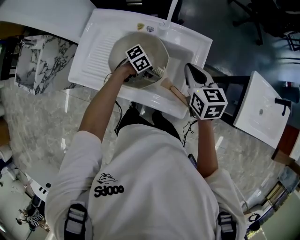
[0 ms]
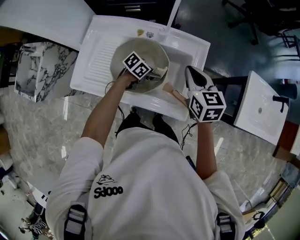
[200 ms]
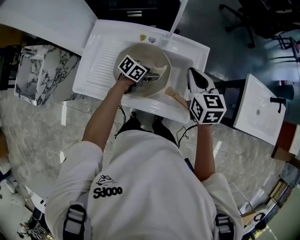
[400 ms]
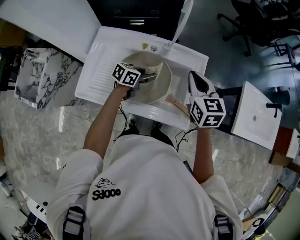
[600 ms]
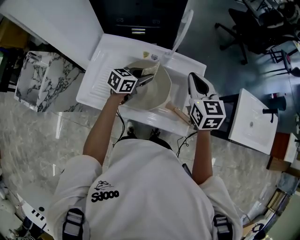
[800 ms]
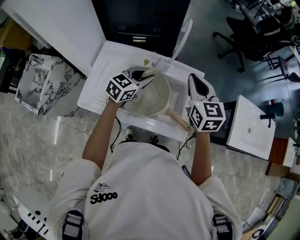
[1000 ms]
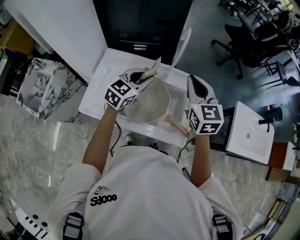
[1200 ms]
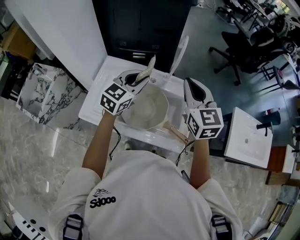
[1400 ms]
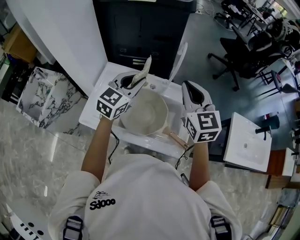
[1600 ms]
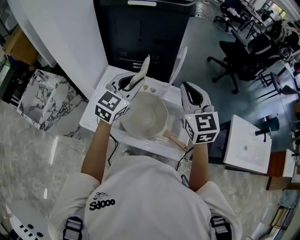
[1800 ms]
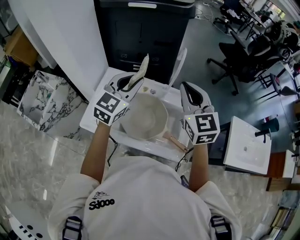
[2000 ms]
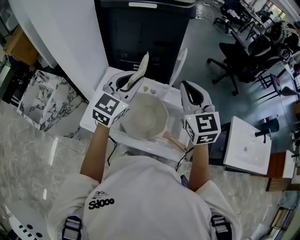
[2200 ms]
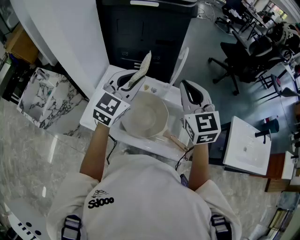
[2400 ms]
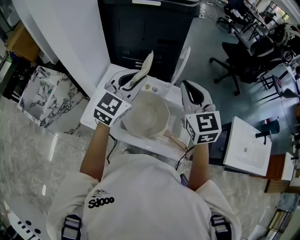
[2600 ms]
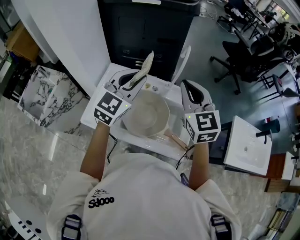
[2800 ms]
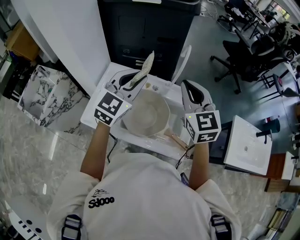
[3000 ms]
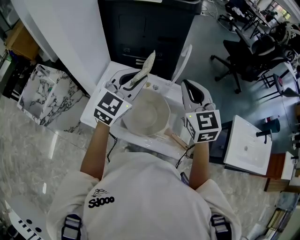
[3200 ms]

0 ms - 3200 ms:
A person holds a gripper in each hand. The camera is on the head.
0 ms - 1600 ms: The left gripper travels upward by approximately 35 cm, and turns by some 80 degrees, while the right gripper goes approximately 20 cm upward, and changes its angle by approximately 30 degrees.
1600 ms - 3200 ms: The left gripper shifts some 5 cm upward.

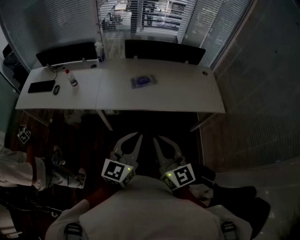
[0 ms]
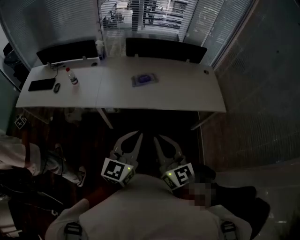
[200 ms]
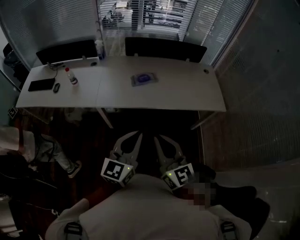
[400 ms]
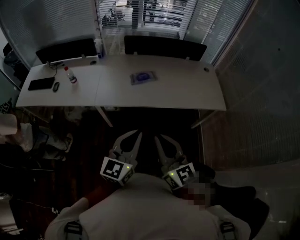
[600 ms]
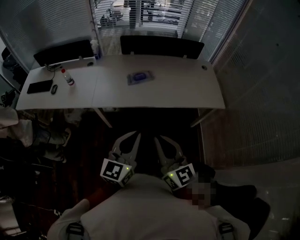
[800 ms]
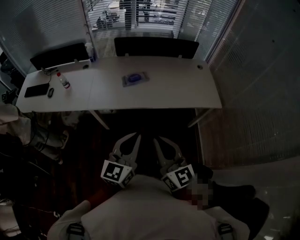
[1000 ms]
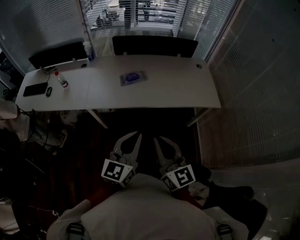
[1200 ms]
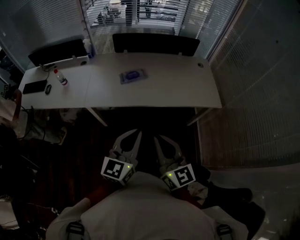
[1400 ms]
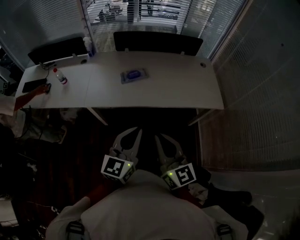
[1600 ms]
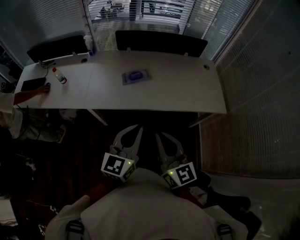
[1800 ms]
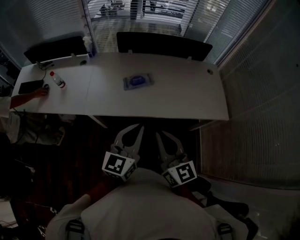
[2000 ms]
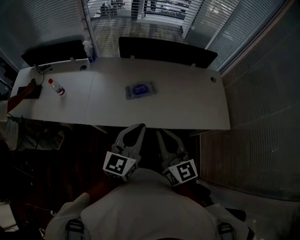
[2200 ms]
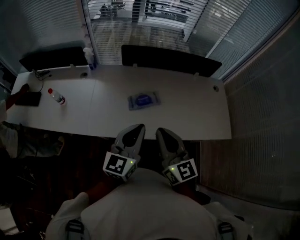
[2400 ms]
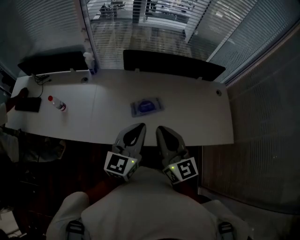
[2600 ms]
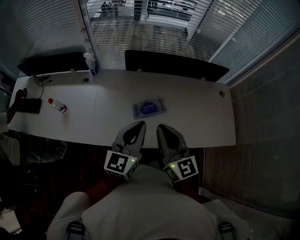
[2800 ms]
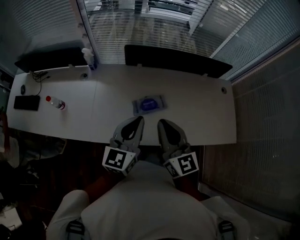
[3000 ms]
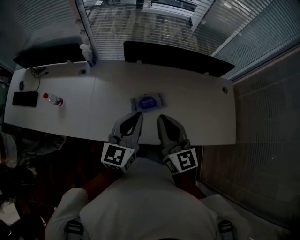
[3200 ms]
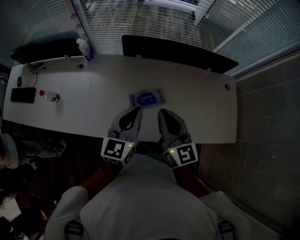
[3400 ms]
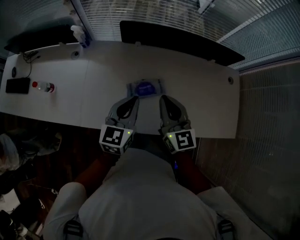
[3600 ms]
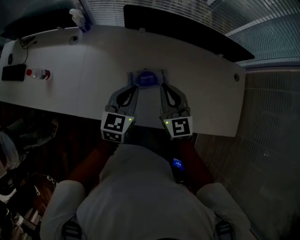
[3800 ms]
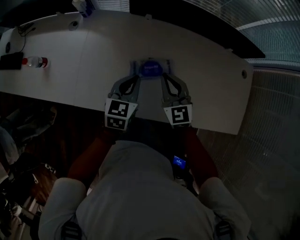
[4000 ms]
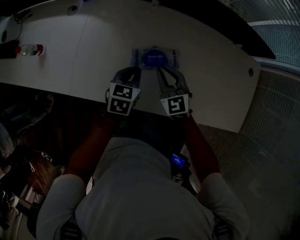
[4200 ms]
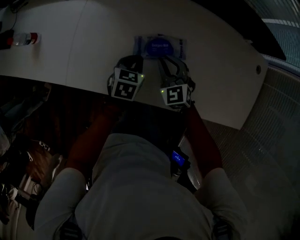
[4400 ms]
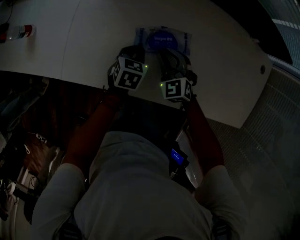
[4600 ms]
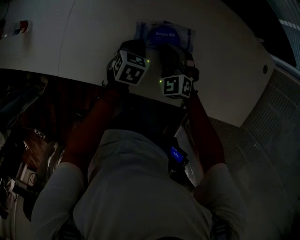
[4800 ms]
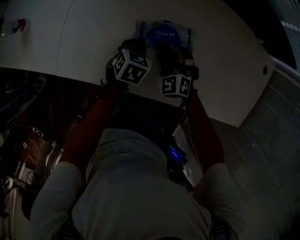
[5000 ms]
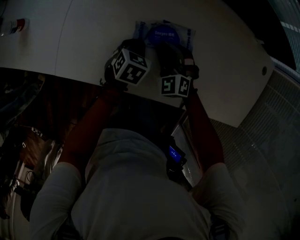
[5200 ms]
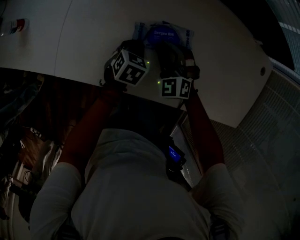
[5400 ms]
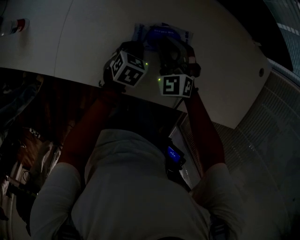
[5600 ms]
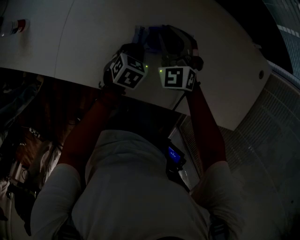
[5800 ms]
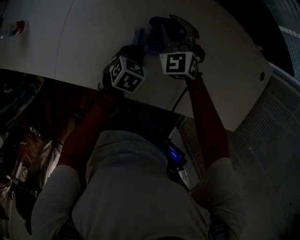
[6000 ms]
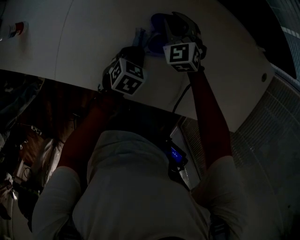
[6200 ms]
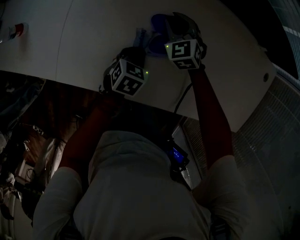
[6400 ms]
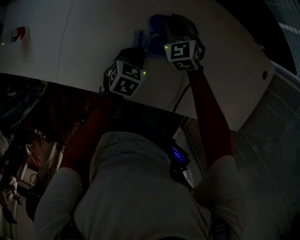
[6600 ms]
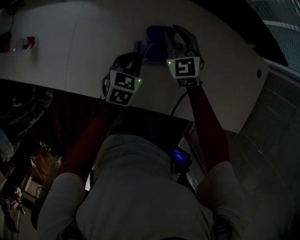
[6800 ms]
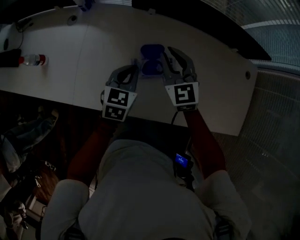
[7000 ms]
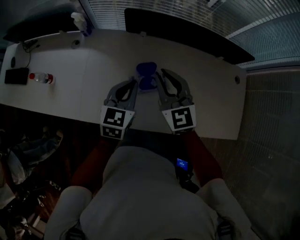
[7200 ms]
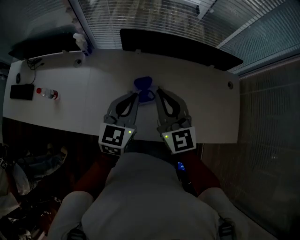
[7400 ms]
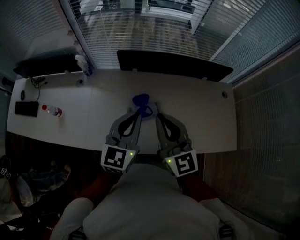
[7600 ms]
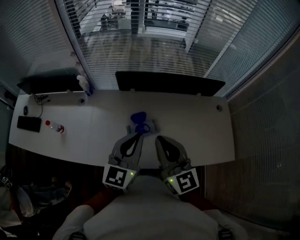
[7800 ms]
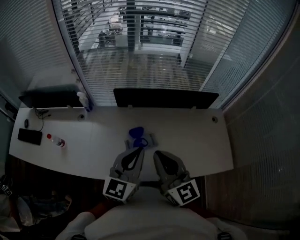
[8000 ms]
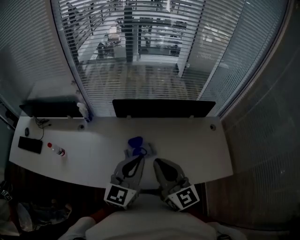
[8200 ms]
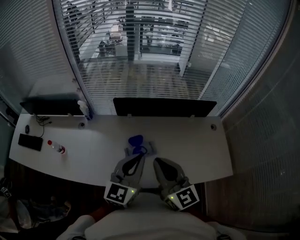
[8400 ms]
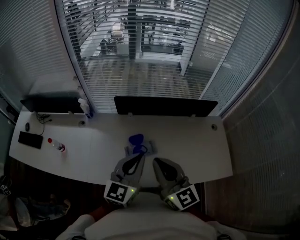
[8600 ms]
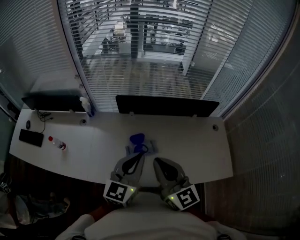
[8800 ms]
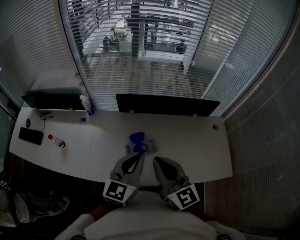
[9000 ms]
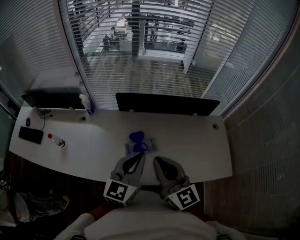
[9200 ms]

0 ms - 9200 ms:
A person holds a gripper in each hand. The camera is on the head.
0 ms - 1600 ms: The right gripper goes approximately 10 cm to the right; the left gripper travels to the right and forward by approximately 10 cm.
1600 ms - 3000 ms: Both grippers travel together forward, approximately 35 cm.
3000 ms - 4600 ms: The grippers both shift downward by approximately 40 cm. The right gripper angles its fingers downward, by some 40 degrees, while the left gripper tips its fingers downward by approximately 50 degrees.
4600 ms - 6200 ms: The right gripper travels forward by about 15 cm.
6200 ms - 7600 ms: The left gripper travels upward by approximately 40 cm, and tips its fingers upward by approximately 50 degrees. Meanwhile the right gripper heads upward and backward, covering some 50 cm, tips its fingers upward by about 40 degrees, and closes.
7600 ms - 9200 ms: The left gripper moves upward, roughly 5 cm. The right gripper travels backward by about 5 cm.

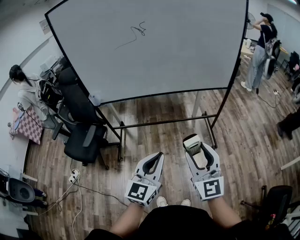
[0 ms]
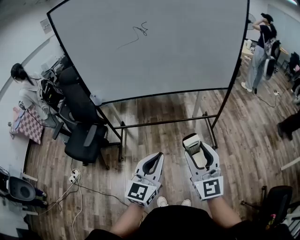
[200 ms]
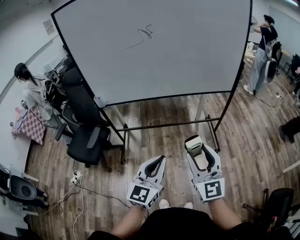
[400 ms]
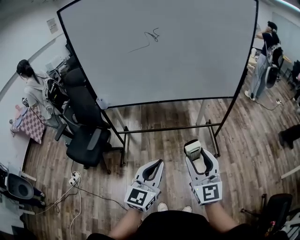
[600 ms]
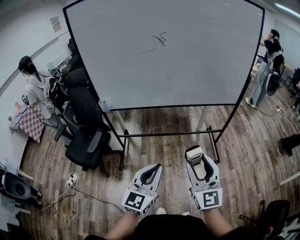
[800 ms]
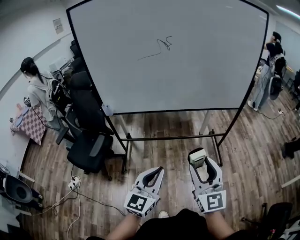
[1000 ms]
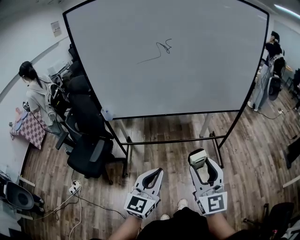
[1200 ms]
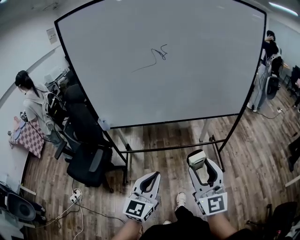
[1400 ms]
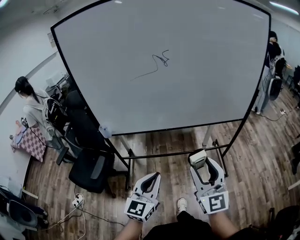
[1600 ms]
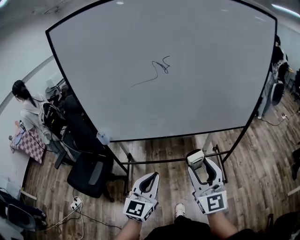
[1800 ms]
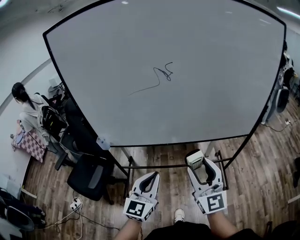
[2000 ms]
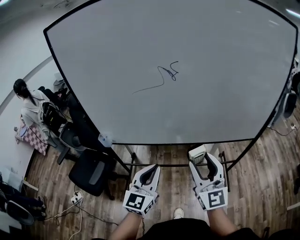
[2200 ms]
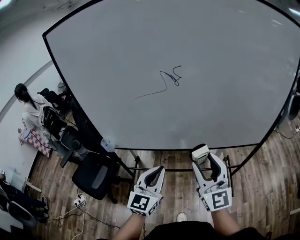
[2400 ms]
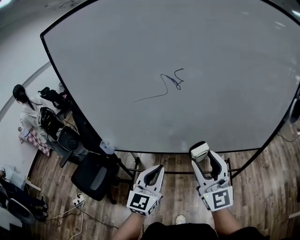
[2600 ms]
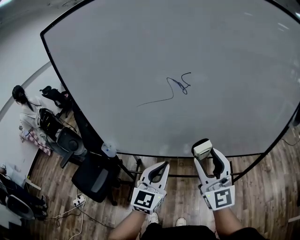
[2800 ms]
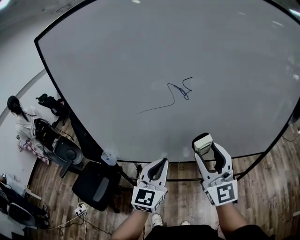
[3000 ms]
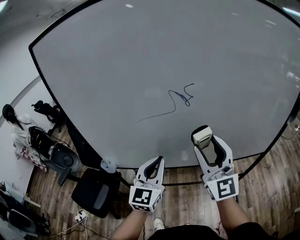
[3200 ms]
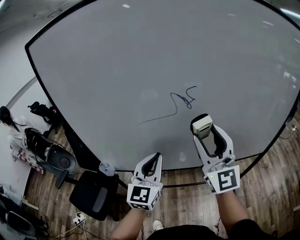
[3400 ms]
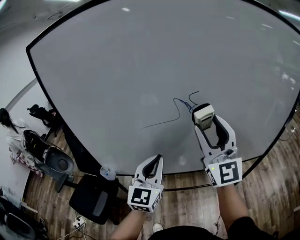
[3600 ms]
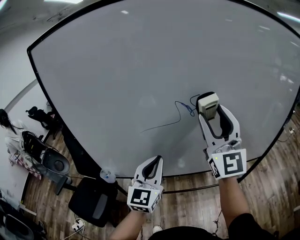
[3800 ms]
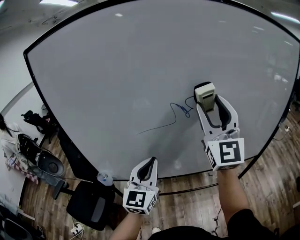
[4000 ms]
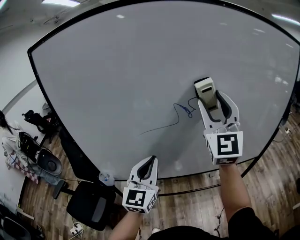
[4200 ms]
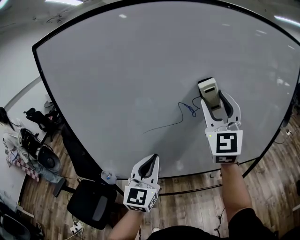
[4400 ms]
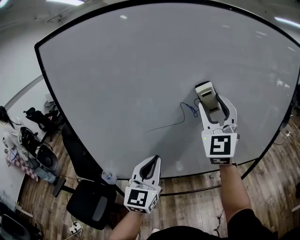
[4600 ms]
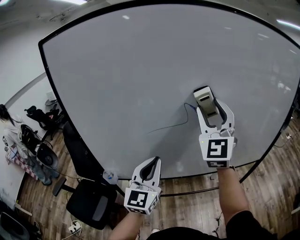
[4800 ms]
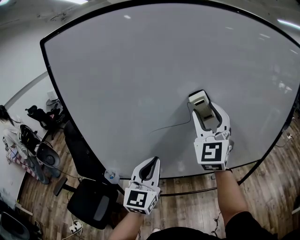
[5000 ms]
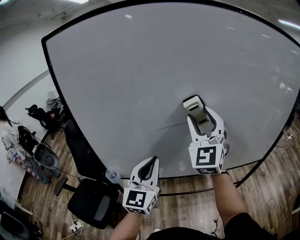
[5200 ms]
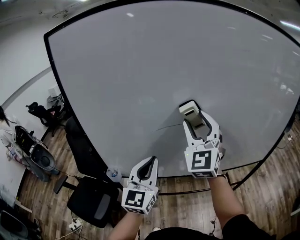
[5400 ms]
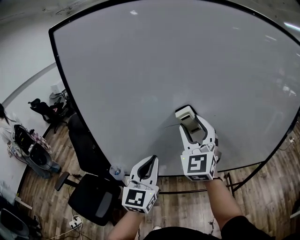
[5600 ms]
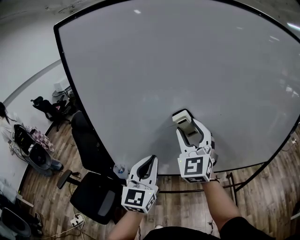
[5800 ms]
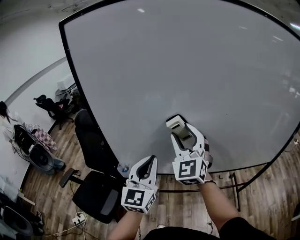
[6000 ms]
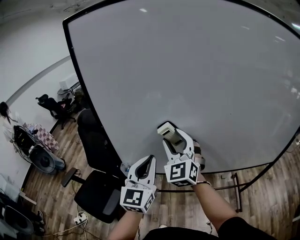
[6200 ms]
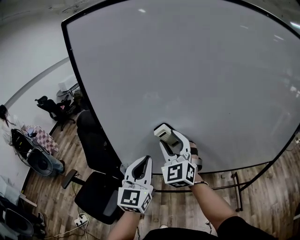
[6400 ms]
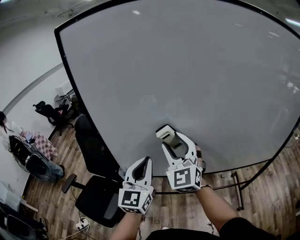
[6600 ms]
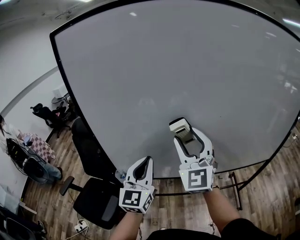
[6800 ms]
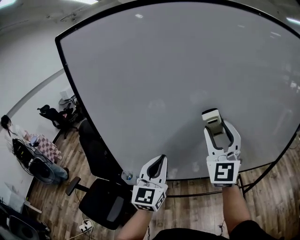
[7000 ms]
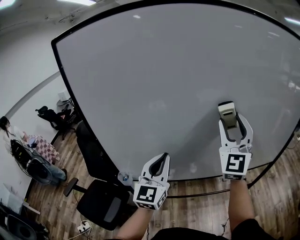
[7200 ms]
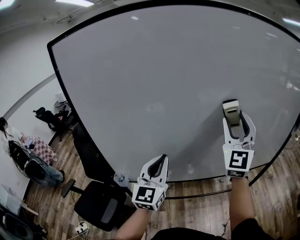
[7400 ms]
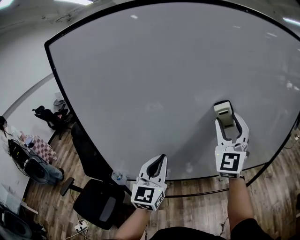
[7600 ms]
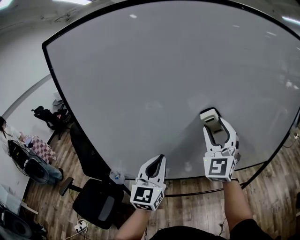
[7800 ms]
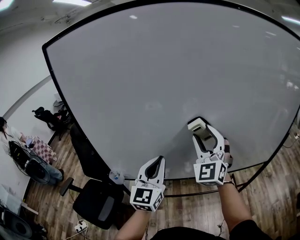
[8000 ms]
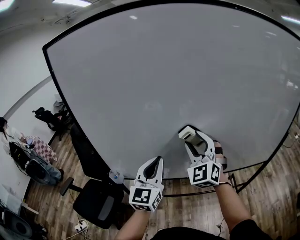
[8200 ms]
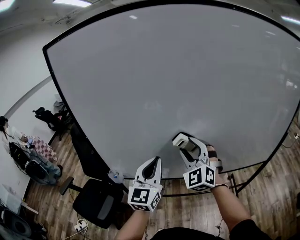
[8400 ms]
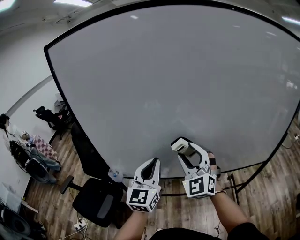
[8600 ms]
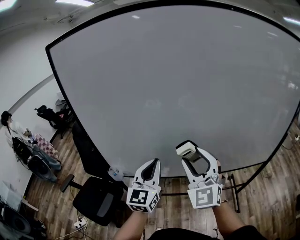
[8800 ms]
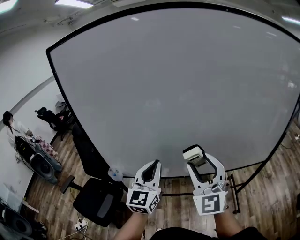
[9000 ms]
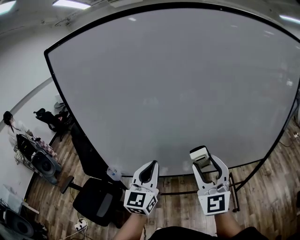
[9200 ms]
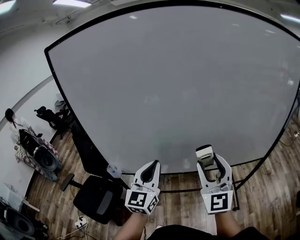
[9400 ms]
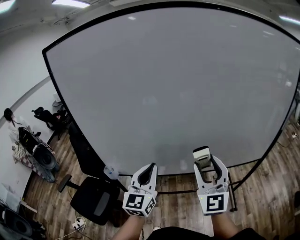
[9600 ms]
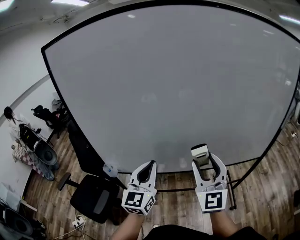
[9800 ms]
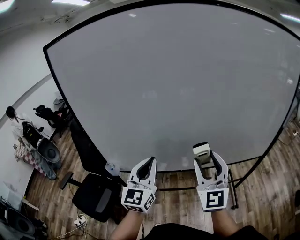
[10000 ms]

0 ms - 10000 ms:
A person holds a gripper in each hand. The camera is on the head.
0 ms - 1400 ms: The left gripper is displaced to the left and forward by some 15 cm, while the right gripper is displaced forward and to the left by roughly 15 cm.
1400 ms - 2800 ms: The grippers both shift forward by roughly 30 cm.
2800 ms - 4200 ms: The right gripper heads upward and forward, covering approximately 25 cm, and rotates some 30 degrees, while the left gripper moves forward, upward and to the left, roughly 15 cm.
4200 ms - 5800 ms: The right gripper moves to the left and downward, roughly 25 cm, while the left gripper moves to the left, approximately 10 cm.
5800 ms - 7200 ms: The right gripper moves to the right and upward, about 15 cm, while the left gripper ends up approximately 5 cm from where it was.
7200 ms - 8600 ms: The right gripper moves downward and to the left, approximately 15 cm, and turns by approximately 30 degrees.
8600 ms - 10000 ms: The right gripper is displaced to the right and backward by some 15 cm, and turns by about 30 degrees.

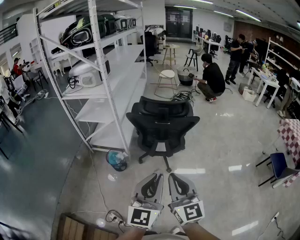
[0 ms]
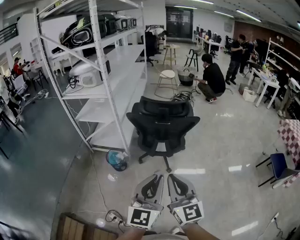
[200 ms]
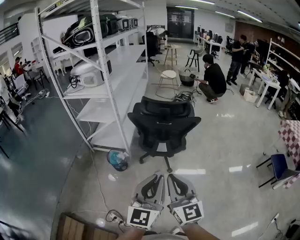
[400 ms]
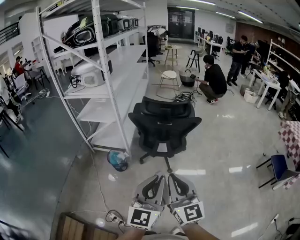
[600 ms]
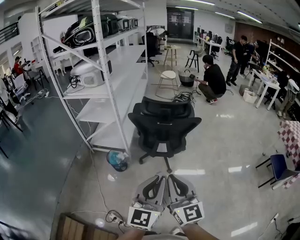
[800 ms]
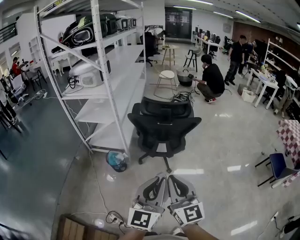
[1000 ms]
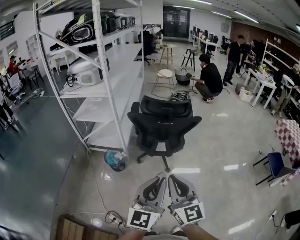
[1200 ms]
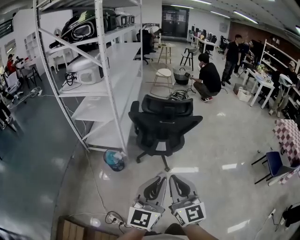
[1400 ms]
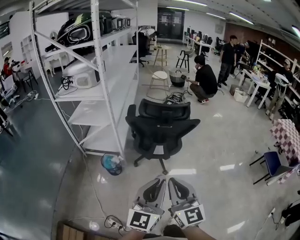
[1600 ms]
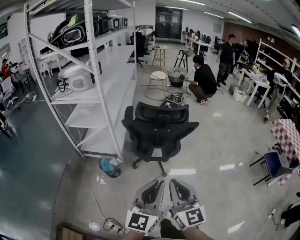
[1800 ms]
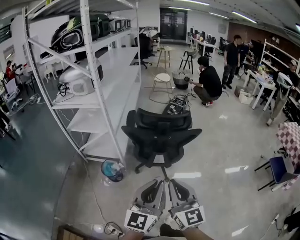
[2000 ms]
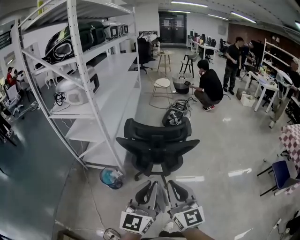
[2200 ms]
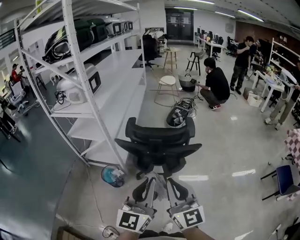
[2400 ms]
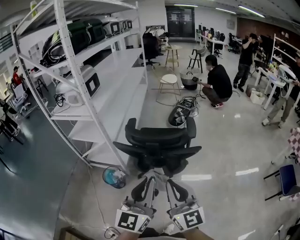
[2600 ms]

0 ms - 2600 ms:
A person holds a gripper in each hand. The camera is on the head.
0 ms - 1200 ms: The grippers make only small movements.
1200 ms - 2600 ms: Both grippers travel together forward, some 25 cm.
